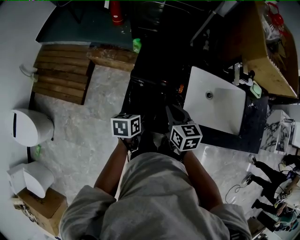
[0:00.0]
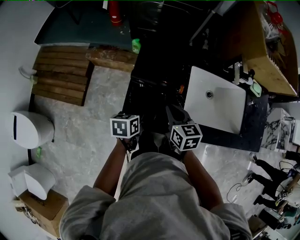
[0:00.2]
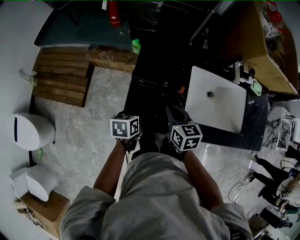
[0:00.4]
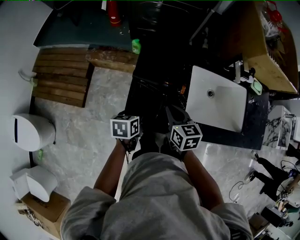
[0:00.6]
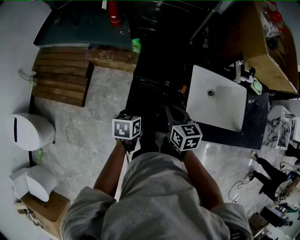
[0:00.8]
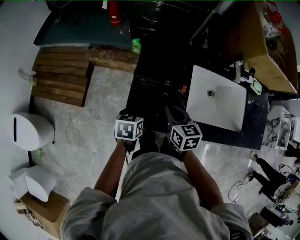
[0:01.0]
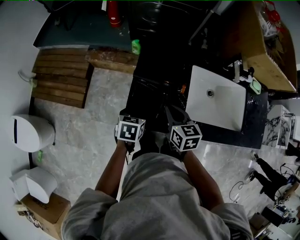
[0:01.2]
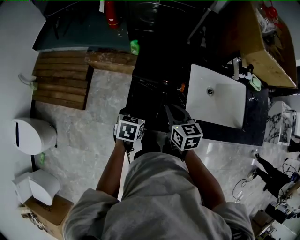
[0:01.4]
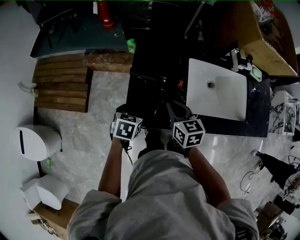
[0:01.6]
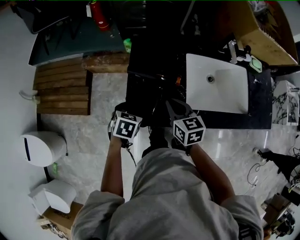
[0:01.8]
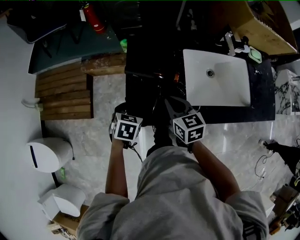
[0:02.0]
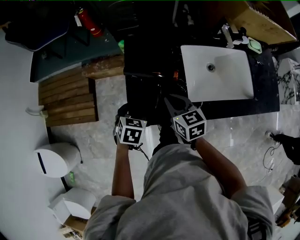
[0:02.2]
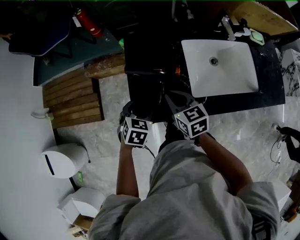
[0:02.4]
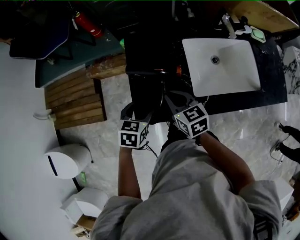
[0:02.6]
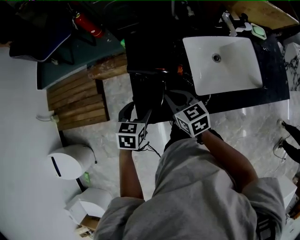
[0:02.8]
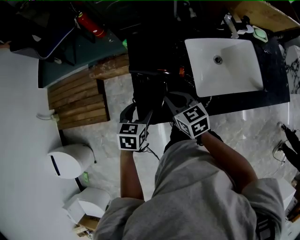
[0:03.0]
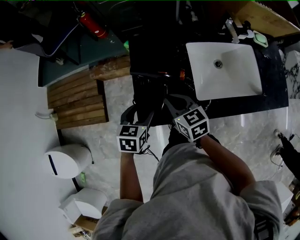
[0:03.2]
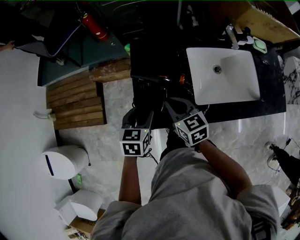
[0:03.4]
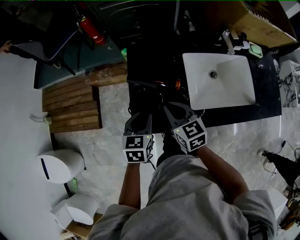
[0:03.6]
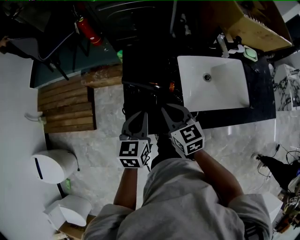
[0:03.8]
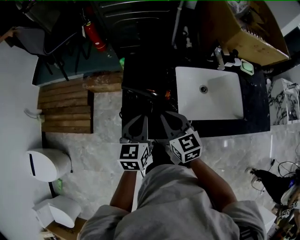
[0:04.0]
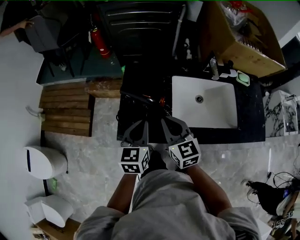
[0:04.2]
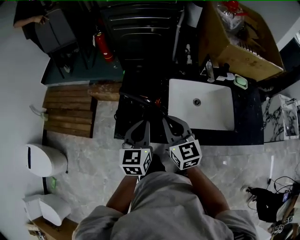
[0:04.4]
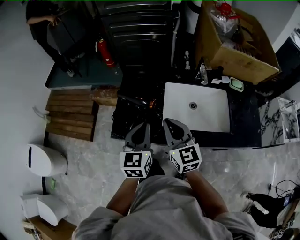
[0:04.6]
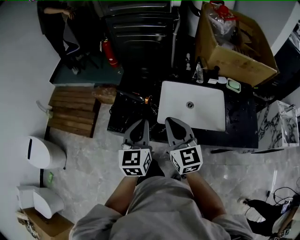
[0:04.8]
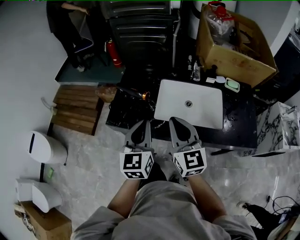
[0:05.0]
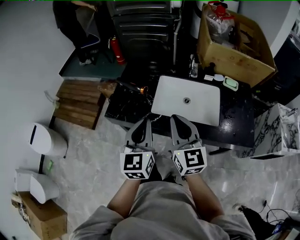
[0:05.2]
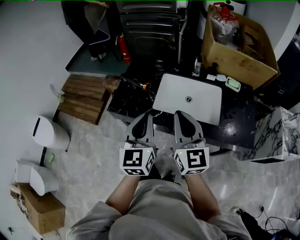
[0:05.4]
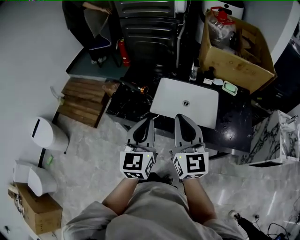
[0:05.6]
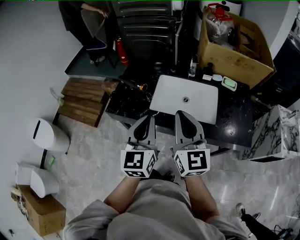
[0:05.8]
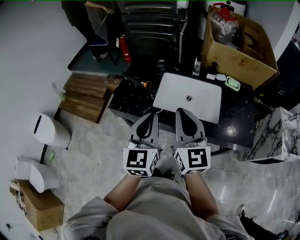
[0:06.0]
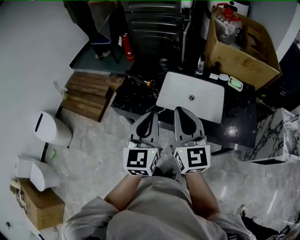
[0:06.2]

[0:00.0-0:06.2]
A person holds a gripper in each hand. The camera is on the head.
0:00.0 to 0:01.6: The left gripper swivels some 30 degrees, and opens.
0:03.2 to 0:04.6: The right gripper moves upward, to the right and backward, roughly 20 cm, and turns by about 30 degrees, while the left gripper goes some 20 cm to the right and upward, swivels about 40 degrees, and closes.
0:04.6 to 0:06.2: Both grippers move backward, upward and to the right, approximately 20 cm.

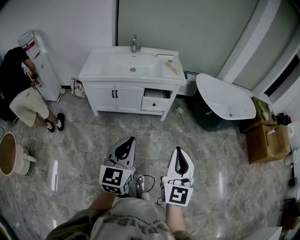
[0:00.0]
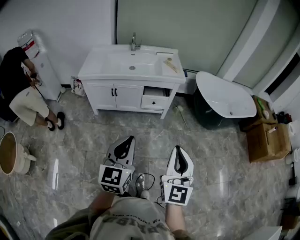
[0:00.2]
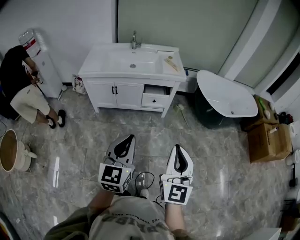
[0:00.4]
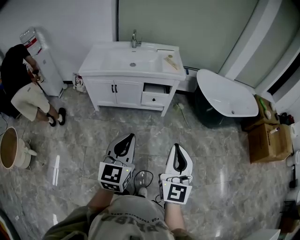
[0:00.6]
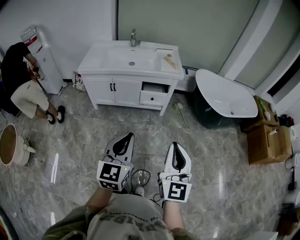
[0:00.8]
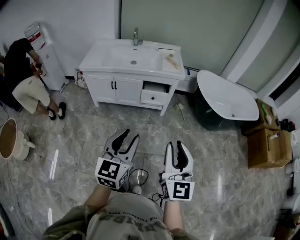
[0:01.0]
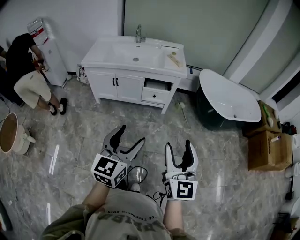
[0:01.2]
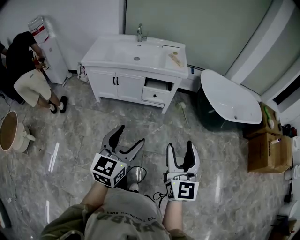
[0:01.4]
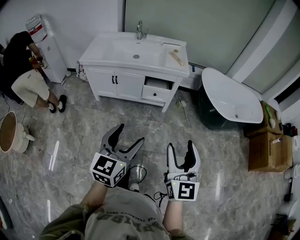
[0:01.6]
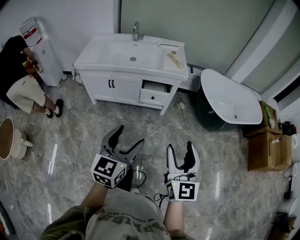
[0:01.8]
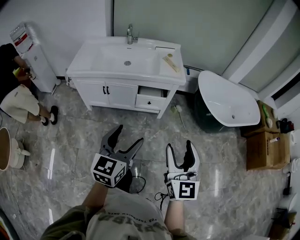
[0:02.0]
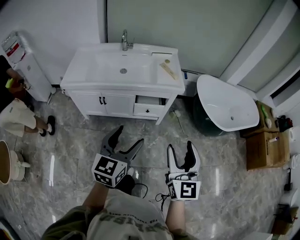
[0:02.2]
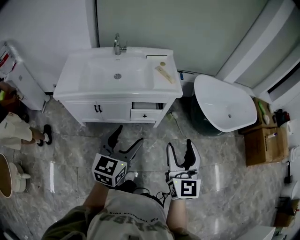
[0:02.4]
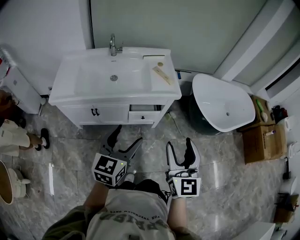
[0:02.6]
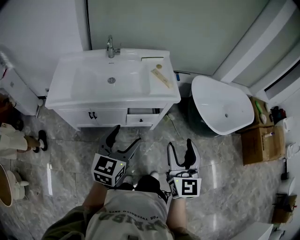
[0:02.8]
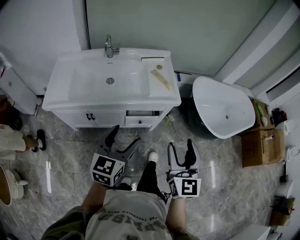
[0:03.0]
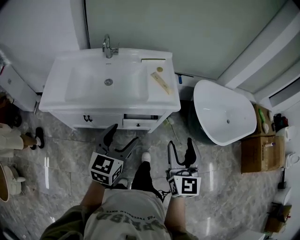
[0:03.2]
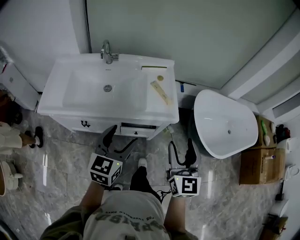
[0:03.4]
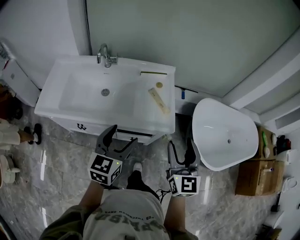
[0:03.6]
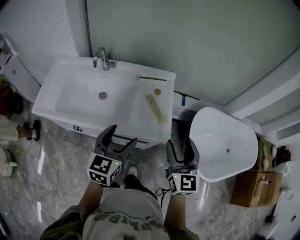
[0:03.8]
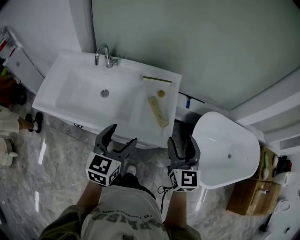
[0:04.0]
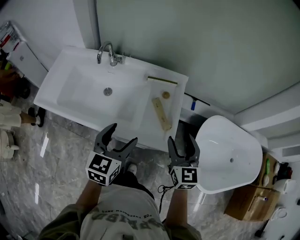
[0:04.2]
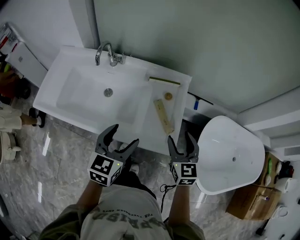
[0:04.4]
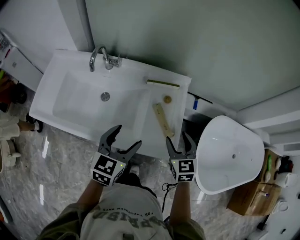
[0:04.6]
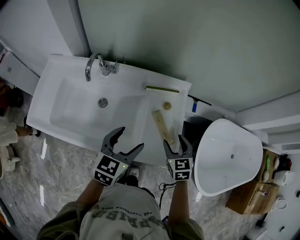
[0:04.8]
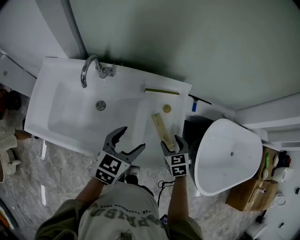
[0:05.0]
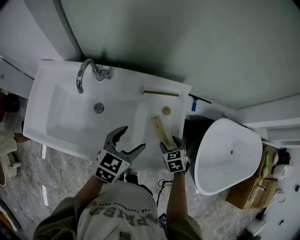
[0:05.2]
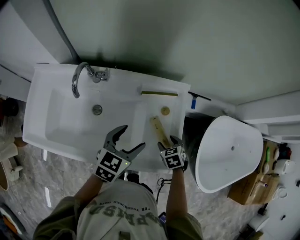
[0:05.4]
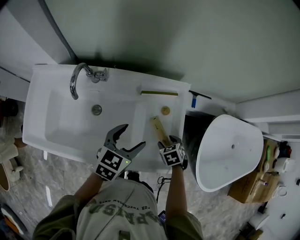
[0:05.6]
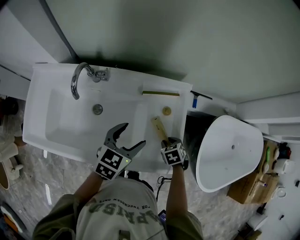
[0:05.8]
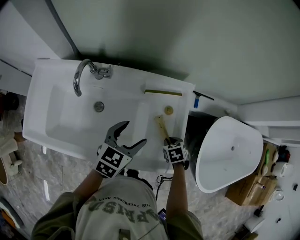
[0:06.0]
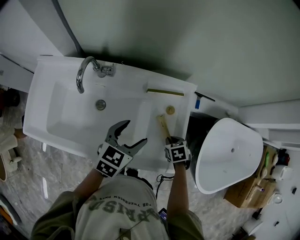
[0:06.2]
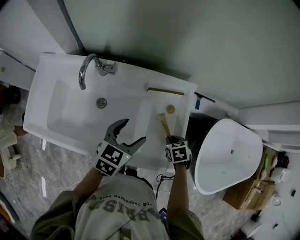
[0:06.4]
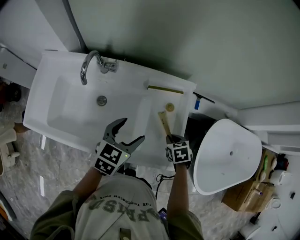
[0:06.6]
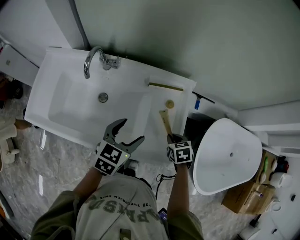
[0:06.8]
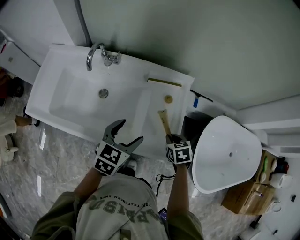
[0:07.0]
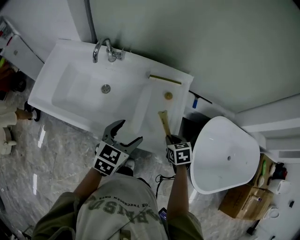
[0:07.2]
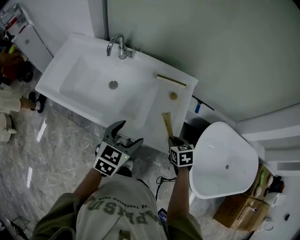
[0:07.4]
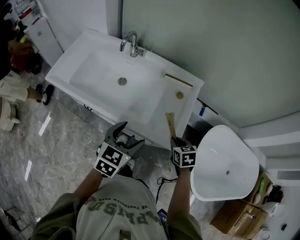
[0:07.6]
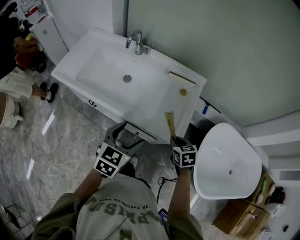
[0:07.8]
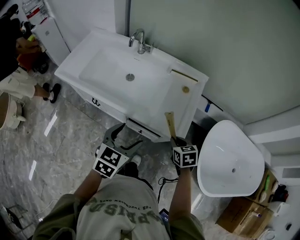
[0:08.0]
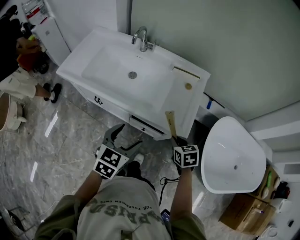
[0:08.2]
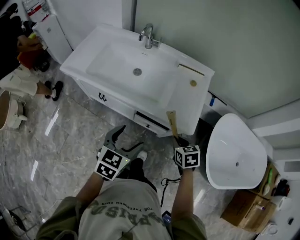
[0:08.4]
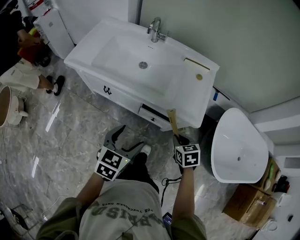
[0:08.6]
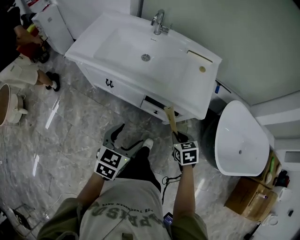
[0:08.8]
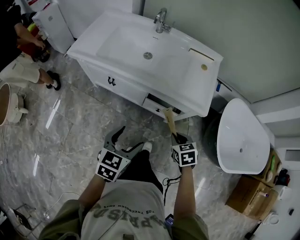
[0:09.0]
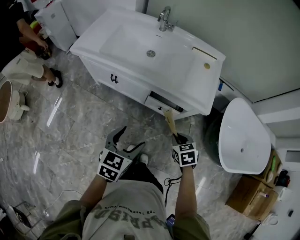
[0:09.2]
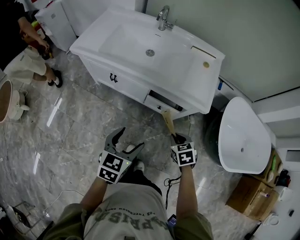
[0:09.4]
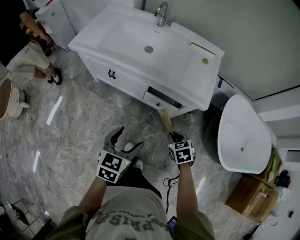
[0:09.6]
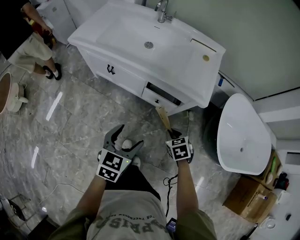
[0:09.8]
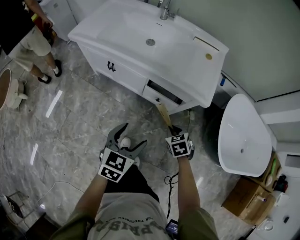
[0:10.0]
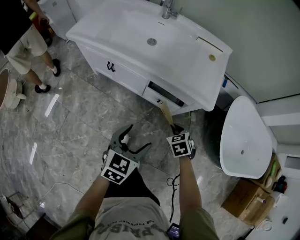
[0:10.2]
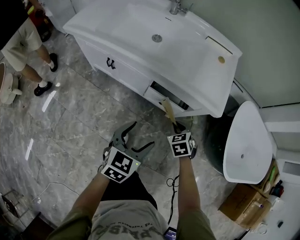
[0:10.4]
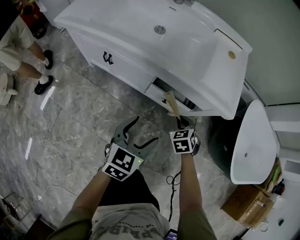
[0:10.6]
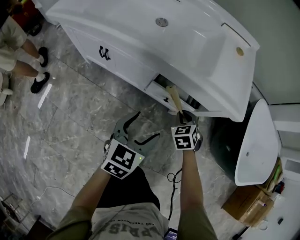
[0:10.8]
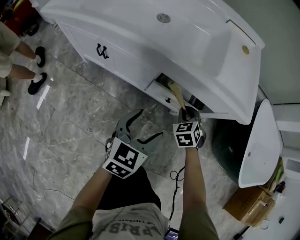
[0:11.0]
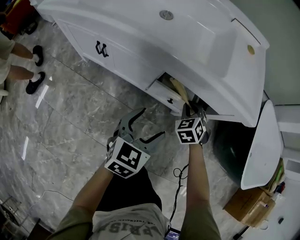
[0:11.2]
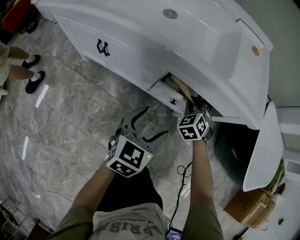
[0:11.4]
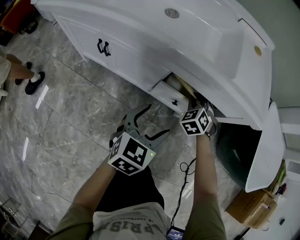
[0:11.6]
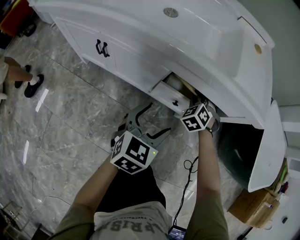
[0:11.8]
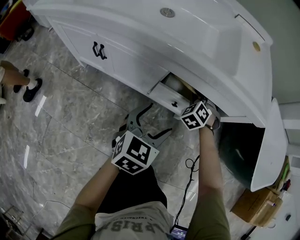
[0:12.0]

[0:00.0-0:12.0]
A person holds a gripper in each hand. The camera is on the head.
0:00.0 to 0:01.6: Both grippers travel together to the right, approximately 10 cm. The left gripper opens its fingers. Meanwhile the right gripper opens its fingers.
0:01.6 to 0:03.0: The grippers both shift forward by approximately 35 cm.
0:03.0 to 0:04.4: Both grippers move forward, some 35 cm. The right gripper swivels approximately 30 degrees.
0:04.4 to 0:06.0: The left gripper travels forward and downward by roughly 20 cm, and turns by some 20 degrees. The right gripper is displaced downward and forward by some 25 cm, angles its fingers downward, by some 50 degrees, and closes up.
0:06.0 to 0:07.6: The left gripper goes approximately 20 cm backward; the right gripper is displaced backward and upward by about 15 cm, and rotates roughly 20 degrees.
0:07.6 to 0:09.0: Both grippers move backward and to the left, about 25 cm.
0:09.0 to 0:10.4: The right gripper is displaced downward by some 15 cm. Meanwhile the left gripper travels downward and to the right by approximately 10 cm.
0:10.4 to 0:12.0: The right gripper heads forward and downward, covering some 25 cm, and turns by approximately 40 degrees. Meanwhile the left gripper goes approximately 25 cm downward and forward.

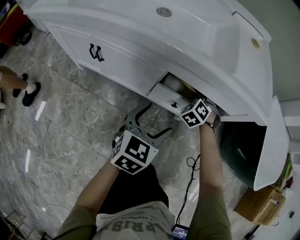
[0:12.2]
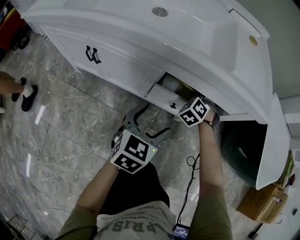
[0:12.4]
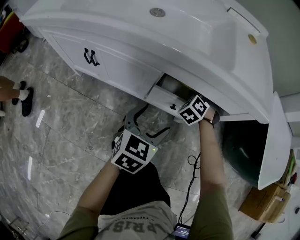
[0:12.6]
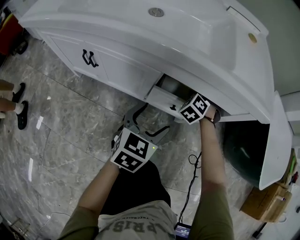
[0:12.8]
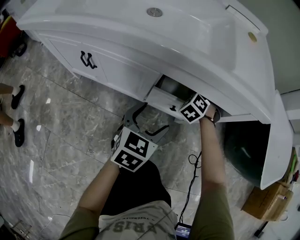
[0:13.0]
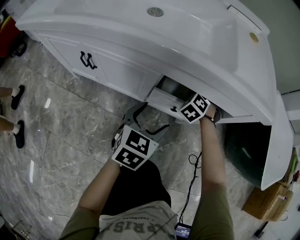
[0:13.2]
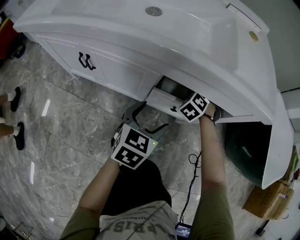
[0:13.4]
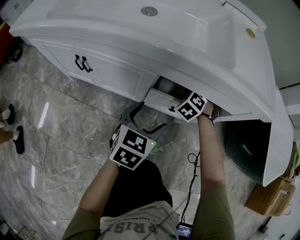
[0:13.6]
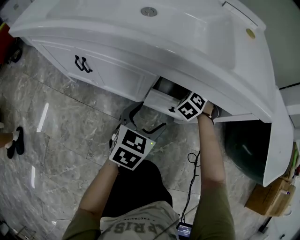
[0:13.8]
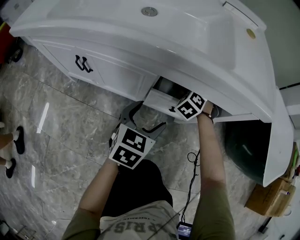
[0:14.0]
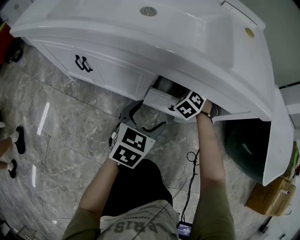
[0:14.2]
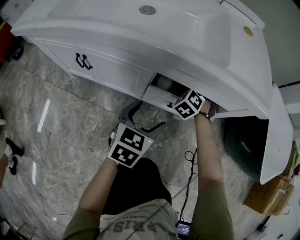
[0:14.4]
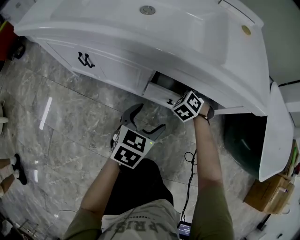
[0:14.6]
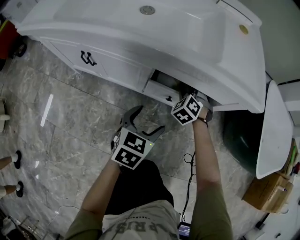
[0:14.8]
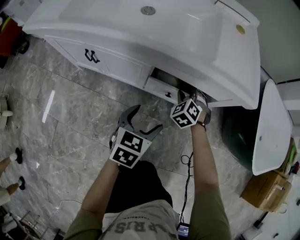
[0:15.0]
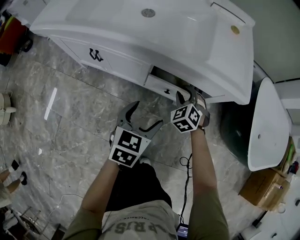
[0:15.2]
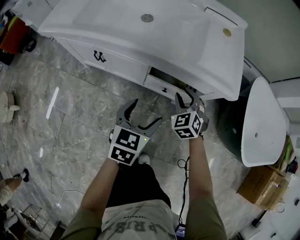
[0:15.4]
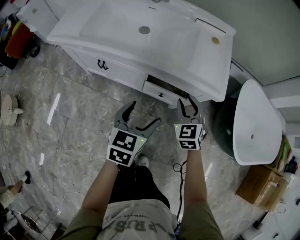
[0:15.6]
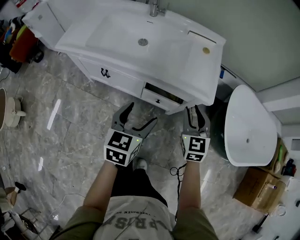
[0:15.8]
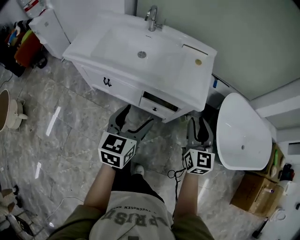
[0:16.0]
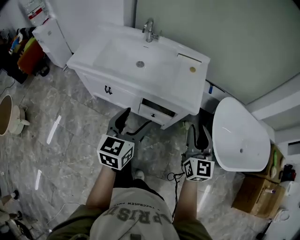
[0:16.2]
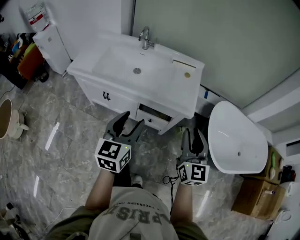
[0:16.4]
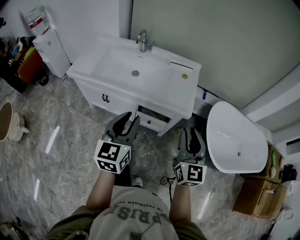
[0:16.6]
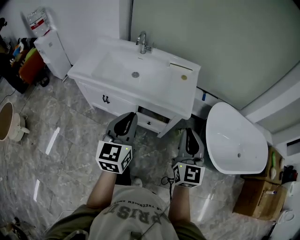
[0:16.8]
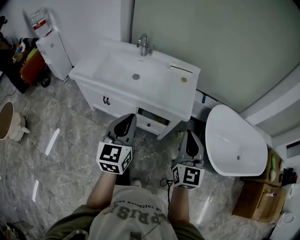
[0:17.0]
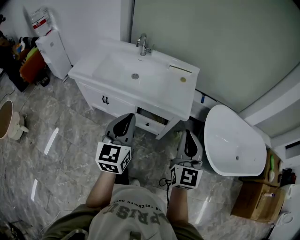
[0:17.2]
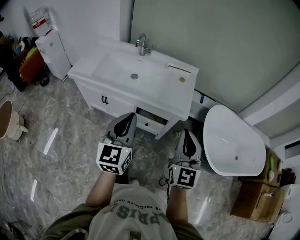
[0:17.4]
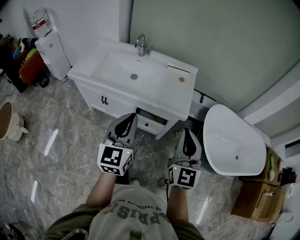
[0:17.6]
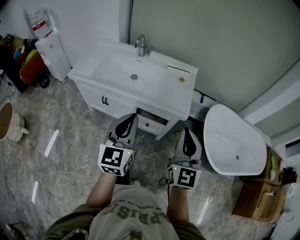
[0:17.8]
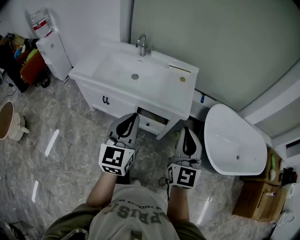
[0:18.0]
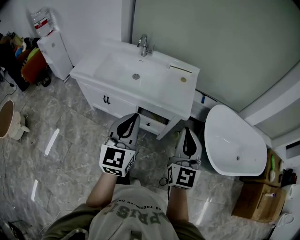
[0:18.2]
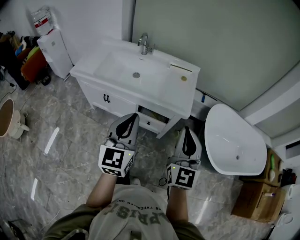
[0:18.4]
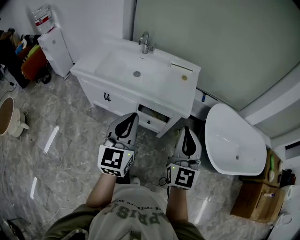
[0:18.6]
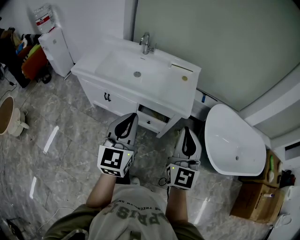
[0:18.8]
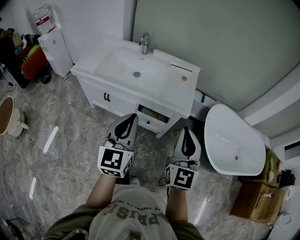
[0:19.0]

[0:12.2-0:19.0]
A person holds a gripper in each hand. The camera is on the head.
0:12.2 to 0:13.6: The left gripper moves about 5 cm.
0:13.6 to 0:15.0: The two grippers go roughly 10 cm backward and upward.
0:15.0 to 0:16.2: The grippers both shift upward by roughly 50 cm. The left gripper turns by roughly 30 degrees; the right gripper points its fingers roughly 50 degrees further upward.
0:16.2 to 0:17.6: The left gripper goes some 10 cm upward, and closes, while the right gripper heads upward and backward, covering roughly 10 cm, and closes its fingers.
0:17.6 to 0:19.0: The grippers make only small movements.
